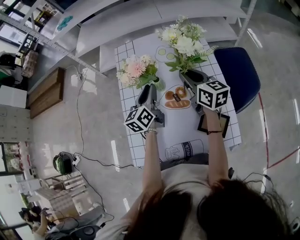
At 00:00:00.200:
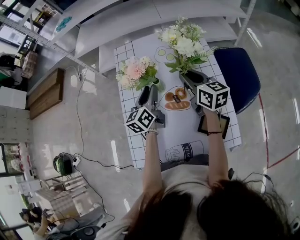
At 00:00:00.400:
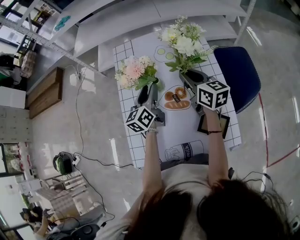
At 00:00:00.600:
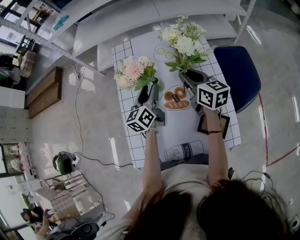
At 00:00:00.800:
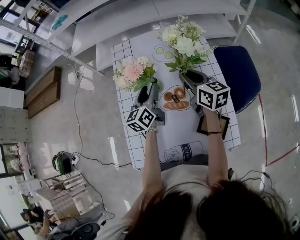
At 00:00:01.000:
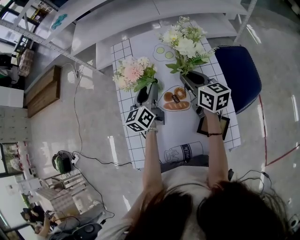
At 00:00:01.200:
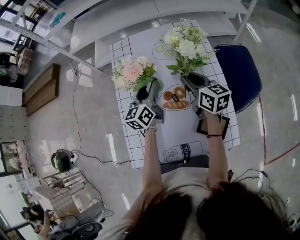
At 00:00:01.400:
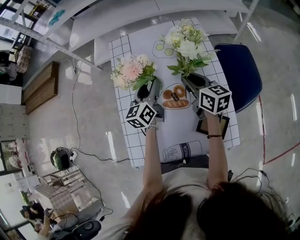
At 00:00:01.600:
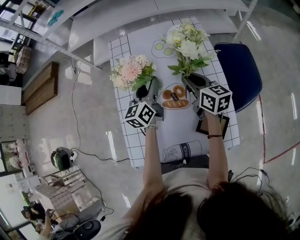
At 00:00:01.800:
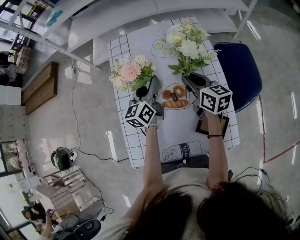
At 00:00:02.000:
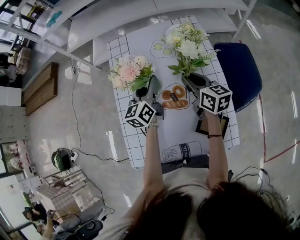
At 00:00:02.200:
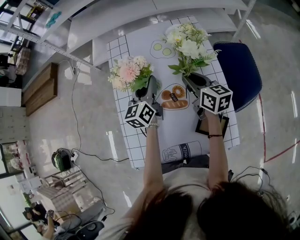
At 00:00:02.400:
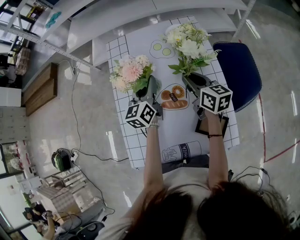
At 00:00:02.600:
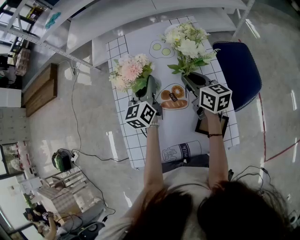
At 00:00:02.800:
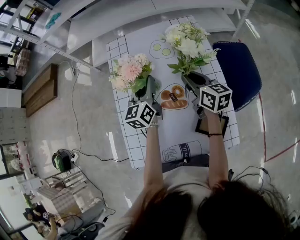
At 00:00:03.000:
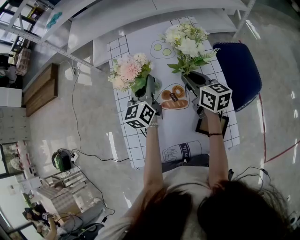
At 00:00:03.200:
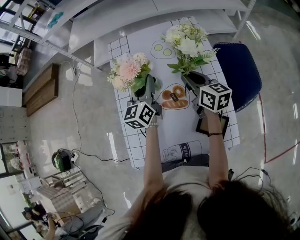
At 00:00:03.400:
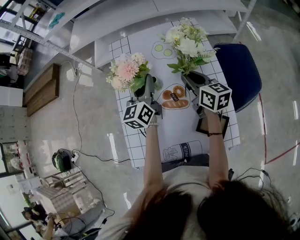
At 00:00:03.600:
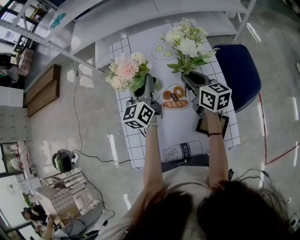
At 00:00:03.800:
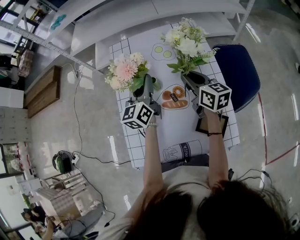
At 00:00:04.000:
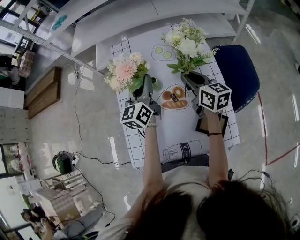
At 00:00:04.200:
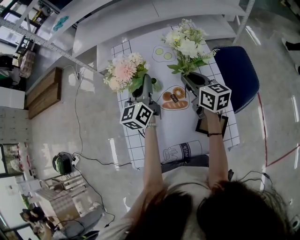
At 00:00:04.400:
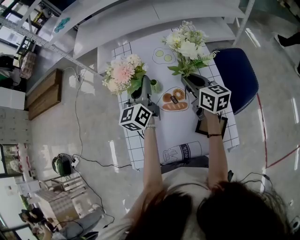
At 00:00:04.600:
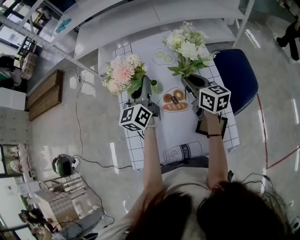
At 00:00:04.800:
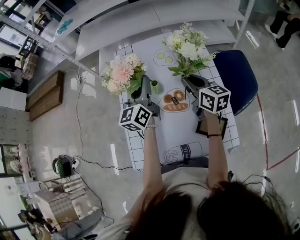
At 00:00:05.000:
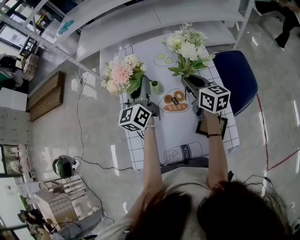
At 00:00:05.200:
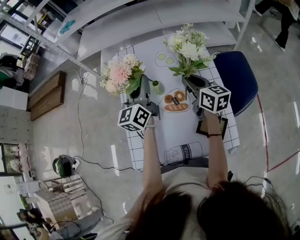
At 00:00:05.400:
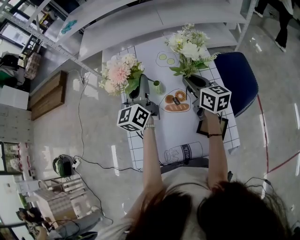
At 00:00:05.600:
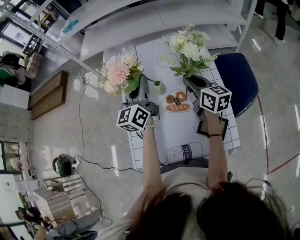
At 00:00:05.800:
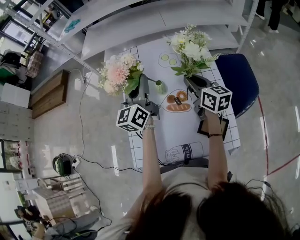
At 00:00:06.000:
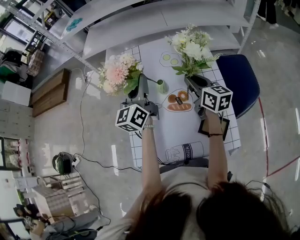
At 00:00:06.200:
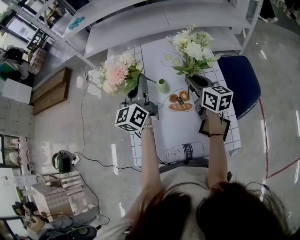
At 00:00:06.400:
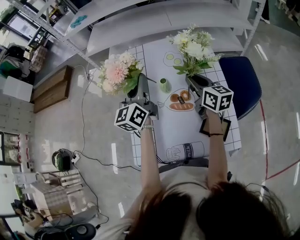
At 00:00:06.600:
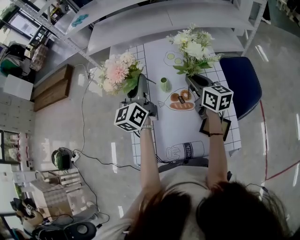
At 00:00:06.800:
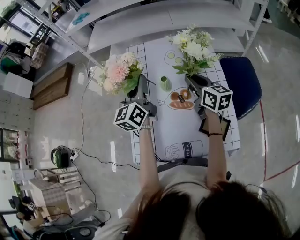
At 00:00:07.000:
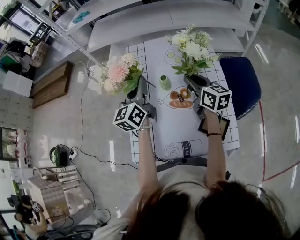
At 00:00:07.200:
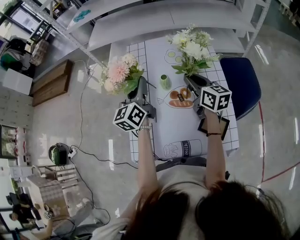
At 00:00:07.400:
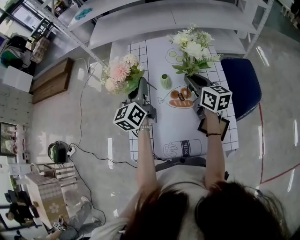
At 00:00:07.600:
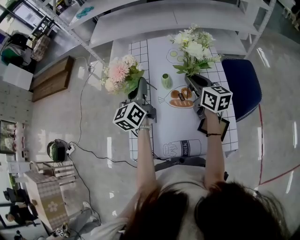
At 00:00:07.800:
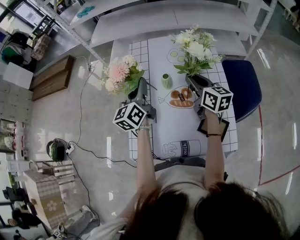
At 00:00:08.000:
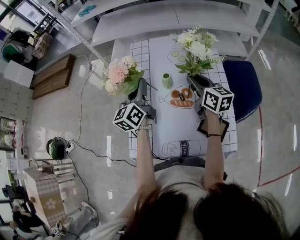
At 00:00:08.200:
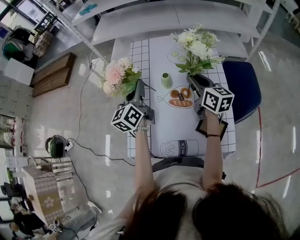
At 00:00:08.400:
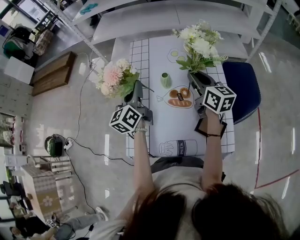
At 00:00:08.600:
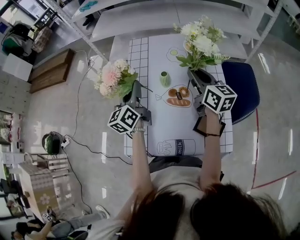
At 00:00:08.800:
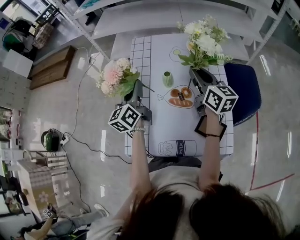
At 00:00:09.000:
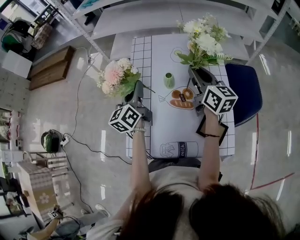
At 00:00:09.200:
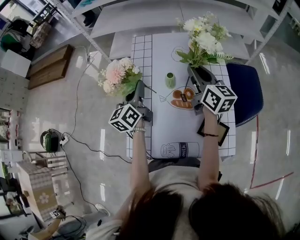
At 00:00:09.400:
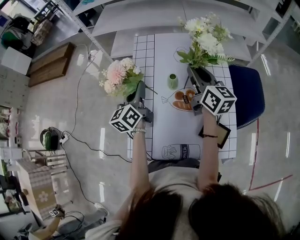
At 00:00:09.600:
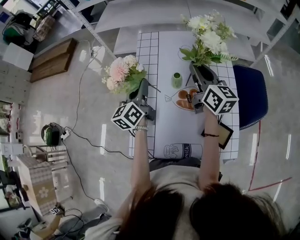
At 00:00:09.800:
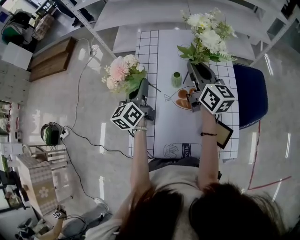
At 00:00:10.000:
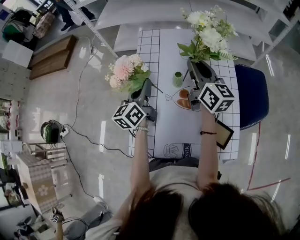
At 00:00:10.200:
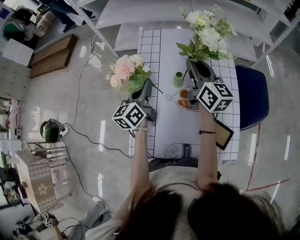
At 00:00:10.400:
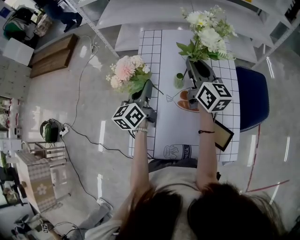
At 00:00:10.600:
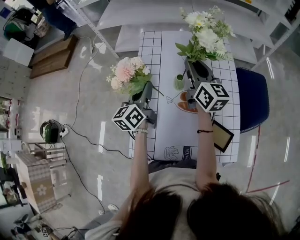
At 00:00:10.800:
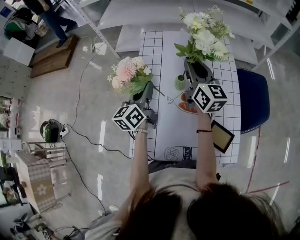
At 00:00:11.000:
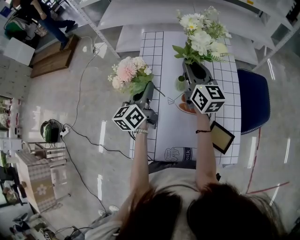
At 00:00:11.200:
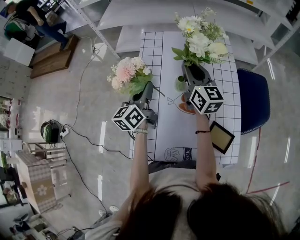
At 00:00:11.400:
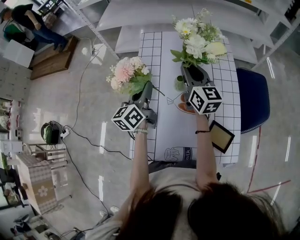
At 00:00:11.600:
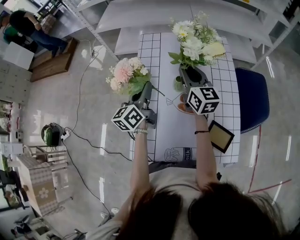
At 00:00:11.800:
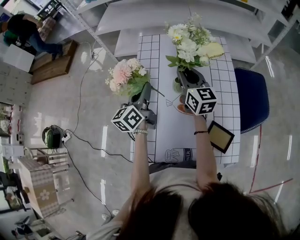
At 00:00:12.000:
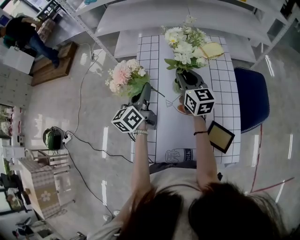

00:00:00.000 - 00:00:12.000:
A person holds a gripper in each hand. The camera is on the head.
00:00:00.000 - 00:00:01.600: The left gripper opens up.
00:00:01.600 - 00:00:03.000: The left gripper closes up.
00:00:03.000 - 00:00:04.400: The left gripper heads upward, covering some 5 cm.
00:00:04.400 - 00:00:06.000: The left gripper moves upward, some 5 cm.
00:00:06.000 - 00:00:07.600: The left gripper changes place by approximately 5 cm.
00:00:07.600 - 00:00:09.000: The right gripper shifts by approximately 5 cm.
00:00:09.000 - 00:00:10.400: The right gripper travels to the left and forward by roughly 5 cm.
00:00:10.400 - 00:00:12.000: The right gripper travels downward by about 5 cm.

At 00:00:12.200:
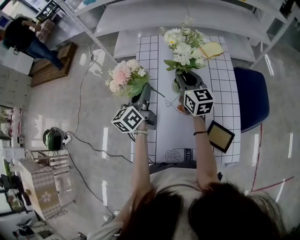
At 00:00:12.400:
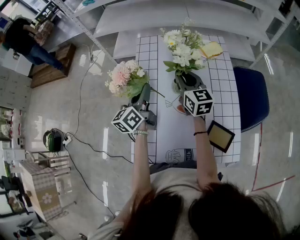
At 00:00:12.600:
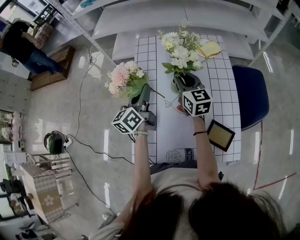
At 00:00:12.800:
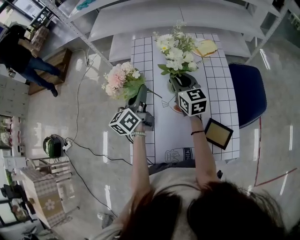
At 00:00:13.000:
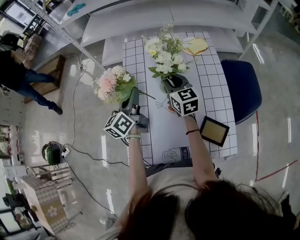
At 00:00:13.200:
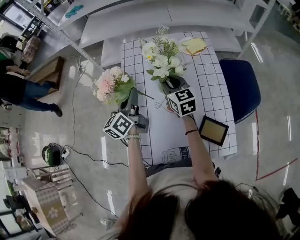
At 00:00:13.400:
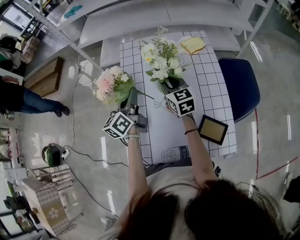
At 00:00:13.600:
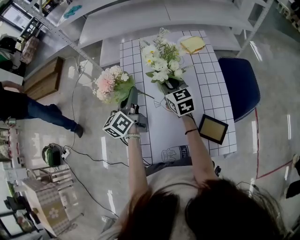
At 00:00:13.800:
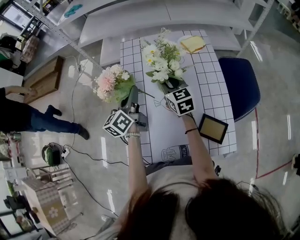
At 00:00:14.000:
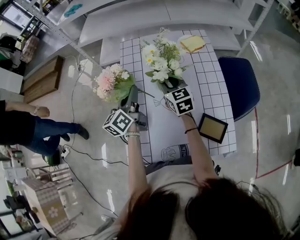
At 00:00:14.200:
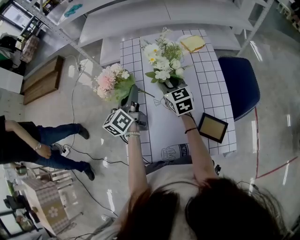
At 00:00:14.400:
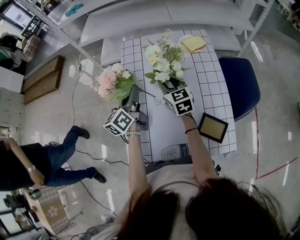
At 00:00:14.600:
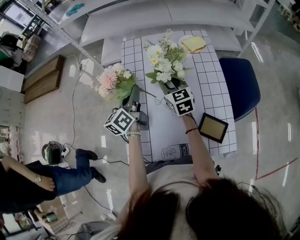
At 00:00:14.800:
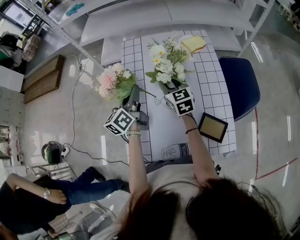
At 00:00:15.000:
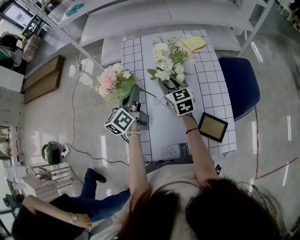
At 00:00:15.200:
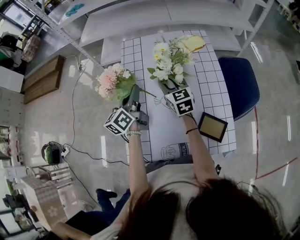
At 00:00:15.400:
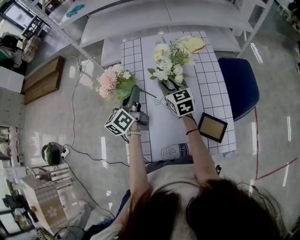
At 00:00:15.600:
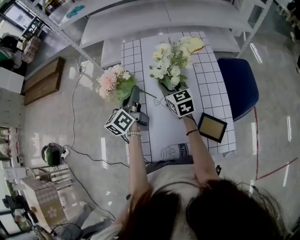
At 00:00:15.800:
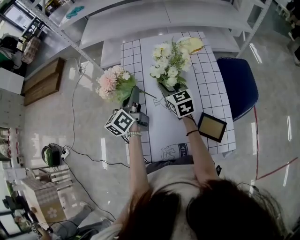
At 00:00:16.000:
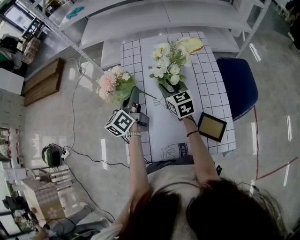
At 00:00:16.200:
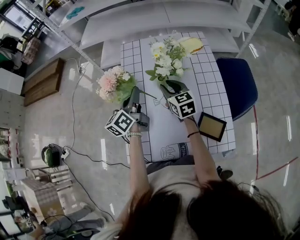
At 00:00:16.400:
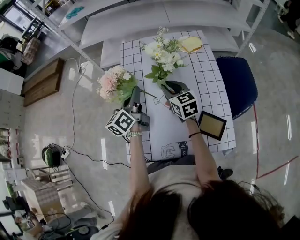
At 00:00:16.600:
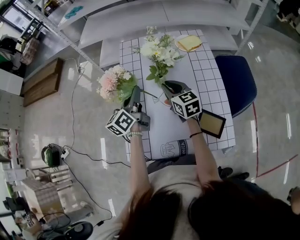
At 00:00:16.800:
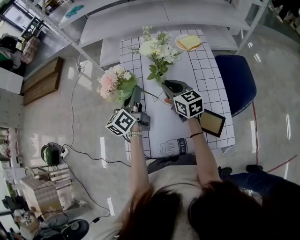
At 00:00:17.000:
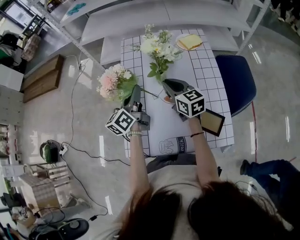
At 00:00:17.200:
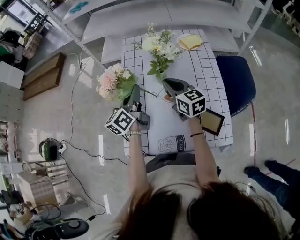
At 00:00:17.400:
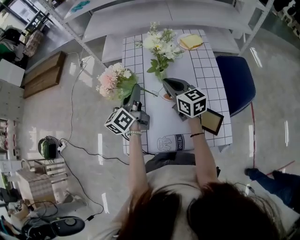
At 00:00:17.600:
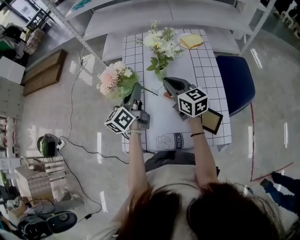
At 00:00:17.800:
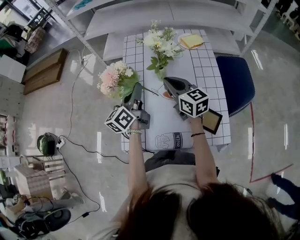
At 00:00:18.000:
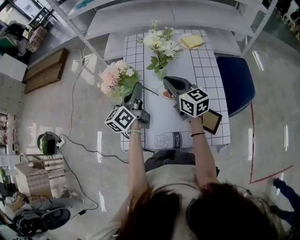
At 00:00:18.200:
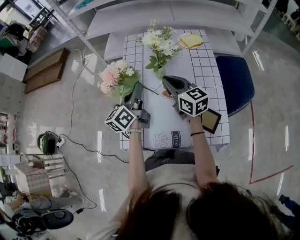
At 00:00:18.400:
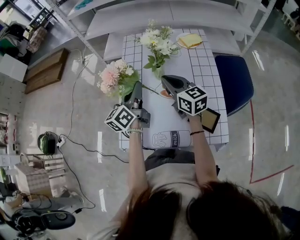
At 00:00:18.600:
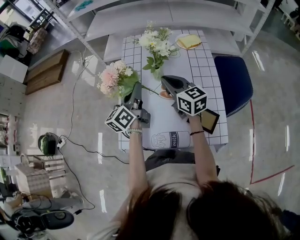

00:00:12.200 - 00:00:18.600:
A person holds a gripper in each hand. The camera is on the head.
00:00:12.200 - 00:00:13.800: The right gripper heads downward, covering about 5 cm.
00:00:13.800 - 00:00:15.400: Both grippers stay about where they are.
00:00:15.400 - 00:00:17.000: The right gripper is displaced backward by approximately 5 cm.
00:00:17.000 - 00:00:18.600: The left gripper ends up some 5 cm from where it was; the right gripper changes place by about 5 cm.

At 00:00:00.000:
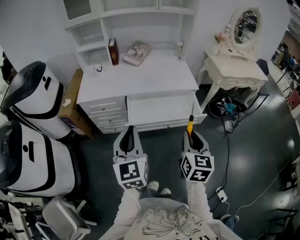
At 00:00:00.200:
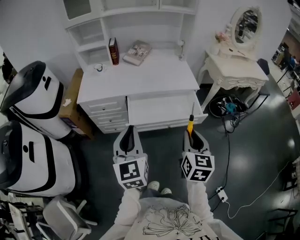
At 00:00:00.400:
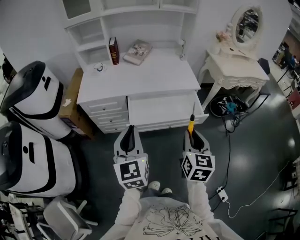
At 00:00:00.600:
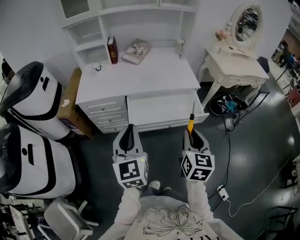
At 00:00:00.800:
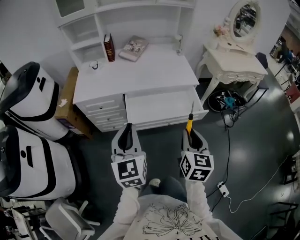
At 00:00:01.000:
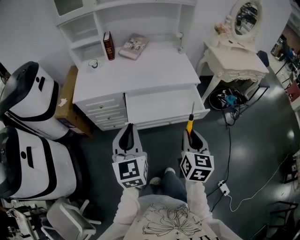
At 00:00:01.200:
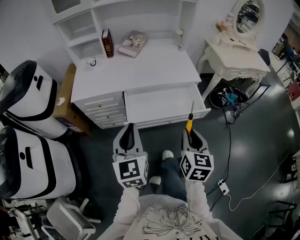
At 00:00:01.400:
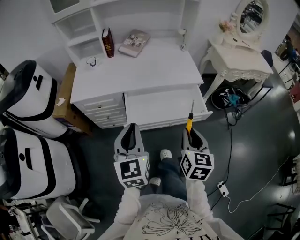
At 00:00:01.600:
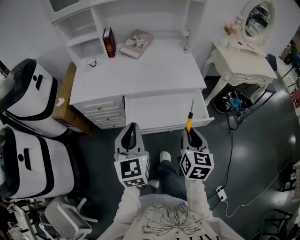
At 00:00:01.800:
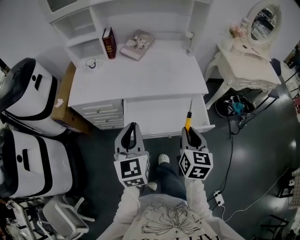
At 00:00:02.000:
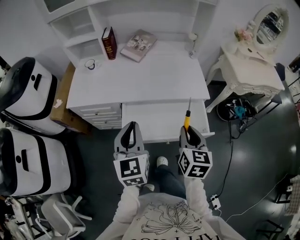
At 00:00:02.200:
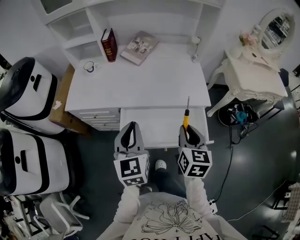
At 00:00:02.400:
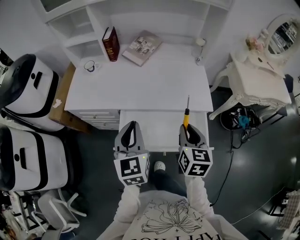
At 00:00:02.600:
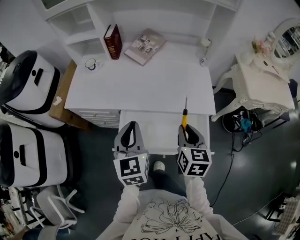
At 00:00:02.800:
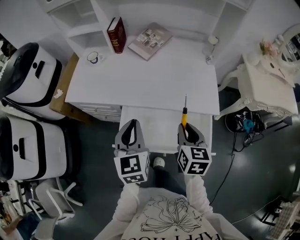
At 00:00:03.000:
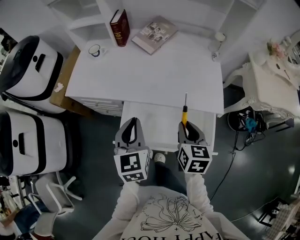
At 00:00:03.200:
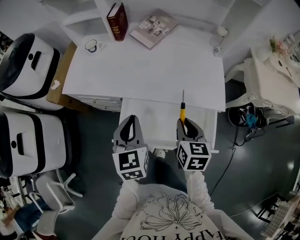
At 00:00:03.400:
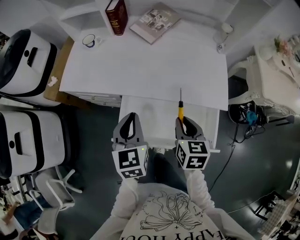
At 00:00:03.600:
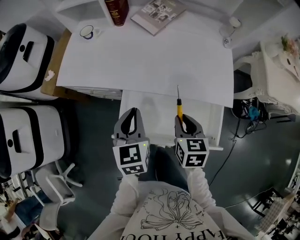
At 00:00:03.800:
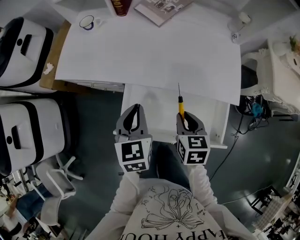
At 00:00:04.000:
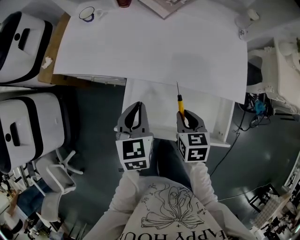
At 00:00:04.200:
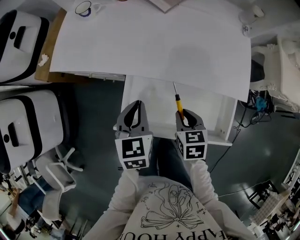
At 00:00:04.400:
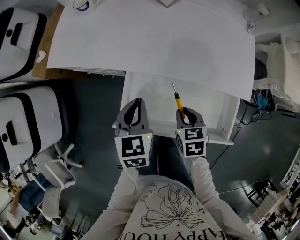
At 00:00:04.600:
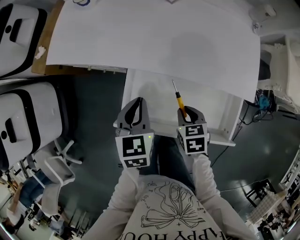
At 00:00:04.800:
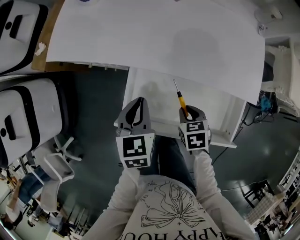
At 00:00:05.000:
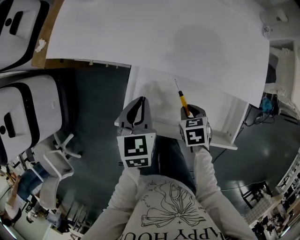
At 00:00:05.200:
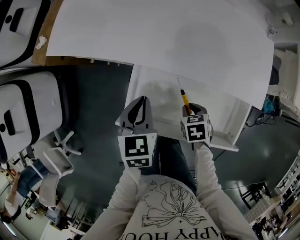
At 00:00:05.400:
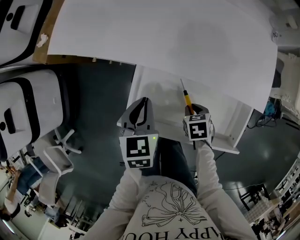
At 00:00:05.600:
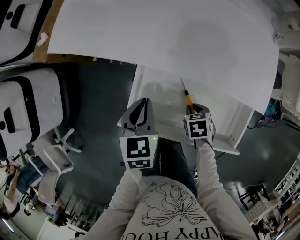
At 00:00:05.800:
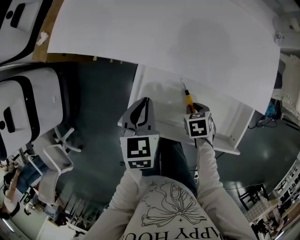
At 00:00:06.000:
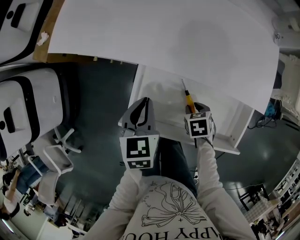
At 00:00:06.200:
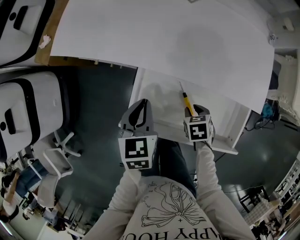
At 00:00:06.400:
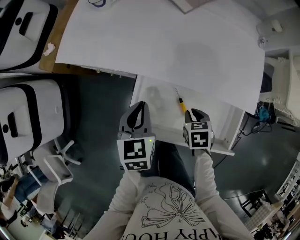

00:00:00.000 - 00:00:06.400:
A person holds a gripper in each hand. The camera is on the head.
00:00:00.000 - 00:00:01.600: Both grippers move forward and downward, roughly 15 cm.
00:00:01.600 - 00:00:03.200: The left gripper shifts roughly 25 cm forward and downward; the right gripper moves forward, approximately 25 cm, and changes its angle by approximately 20 degrees.
00:00:03.200 - 00:00:04.800: The grippers both shift downward by roughly 20 cm. The right gripper angles its fingers downward, by some 30 degrees.
00:00:04.800 - 00:00:06.400: The right gripper moves roughly 10 cm downward and comes back.
